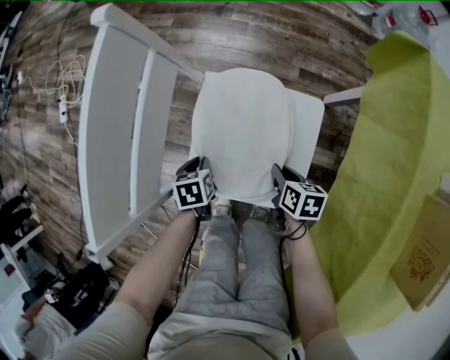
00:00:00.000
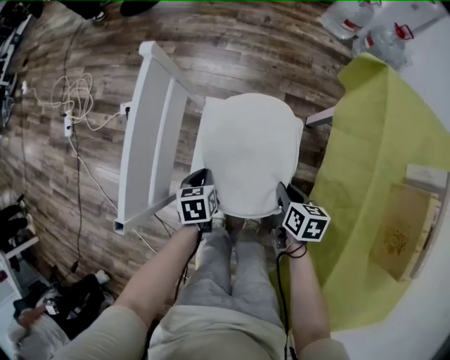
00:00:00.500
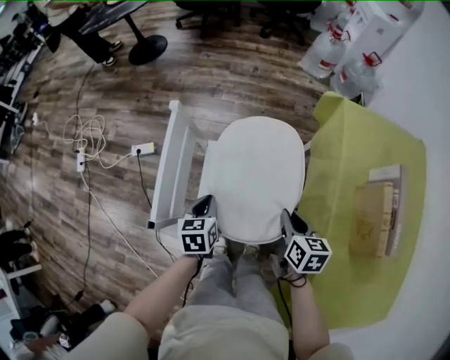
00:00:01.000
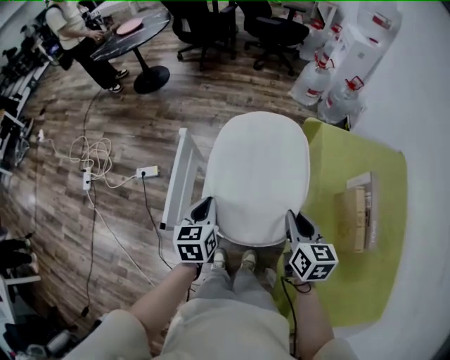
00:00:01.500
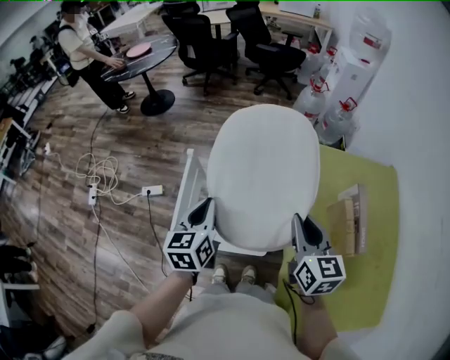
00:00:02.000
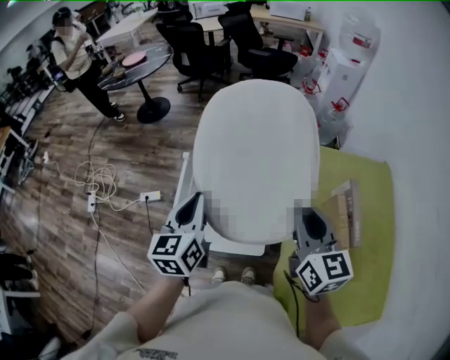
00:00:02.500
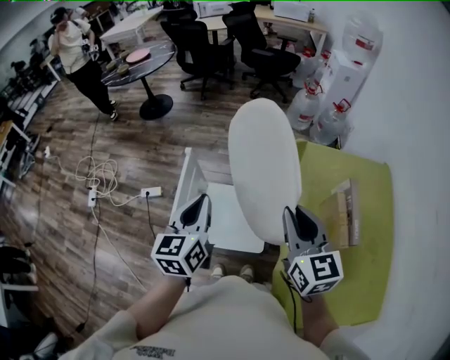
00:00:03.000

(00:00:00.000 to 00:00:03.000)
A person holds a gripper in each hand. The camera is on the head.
00:00:00.000 - 00:00:01.500: The two grippers go about 50 cm upward. The right gripper turns by approximately 40 degrees, while the left gripper tilts its fingers some 40 degrees upward.
00:00:01.500 - 00:00:03.000: Both grippers move upward, about 20 cm. The right gripper changes its angle by about 20 degrees. Meanwhile the left gripper changes its angle by about 20 degrees.

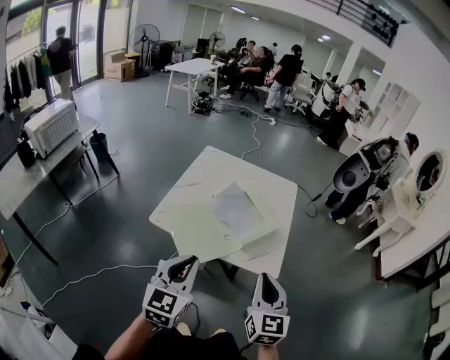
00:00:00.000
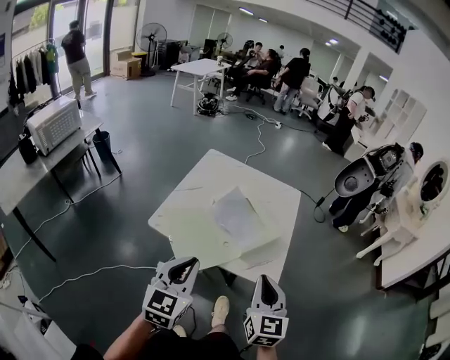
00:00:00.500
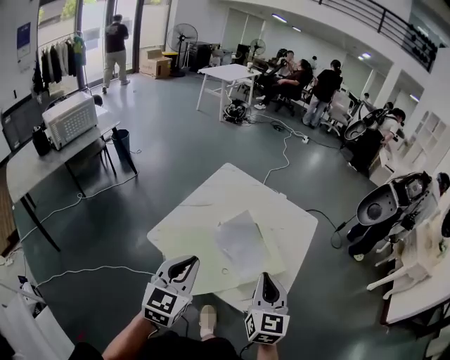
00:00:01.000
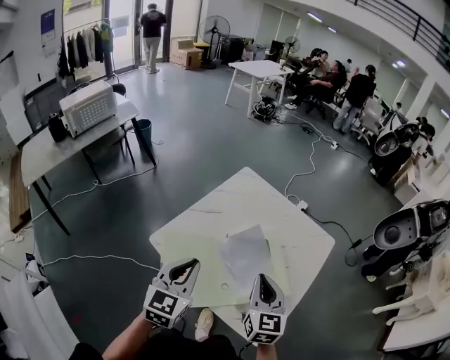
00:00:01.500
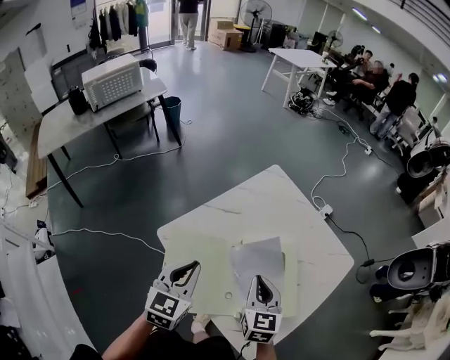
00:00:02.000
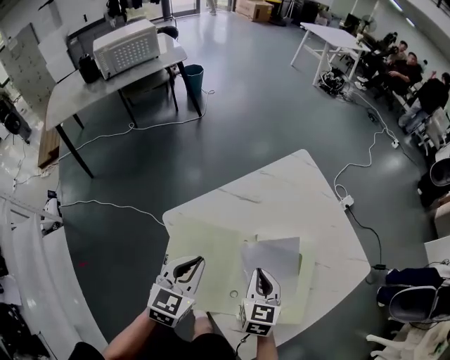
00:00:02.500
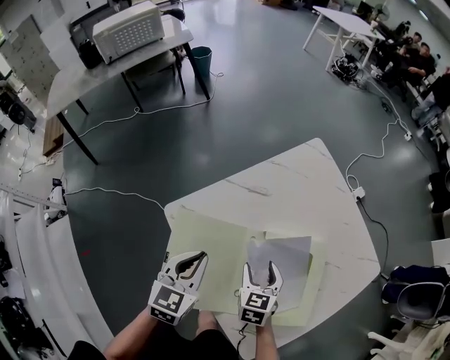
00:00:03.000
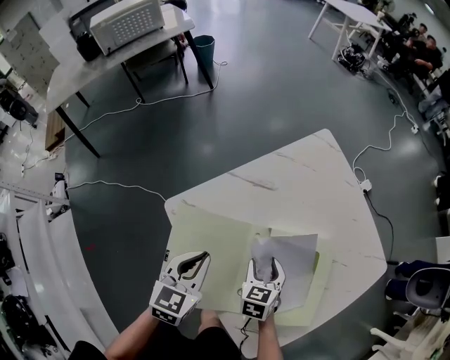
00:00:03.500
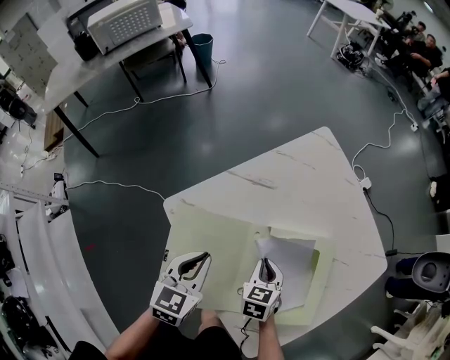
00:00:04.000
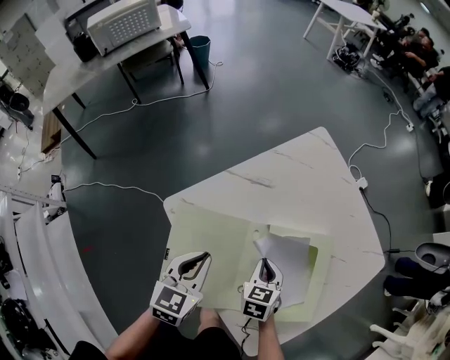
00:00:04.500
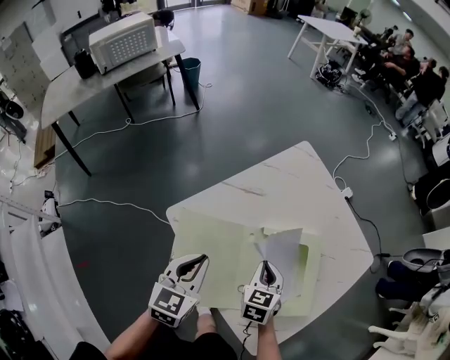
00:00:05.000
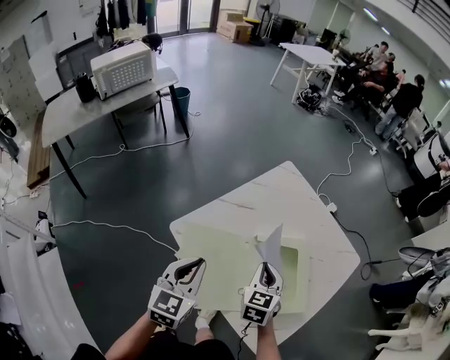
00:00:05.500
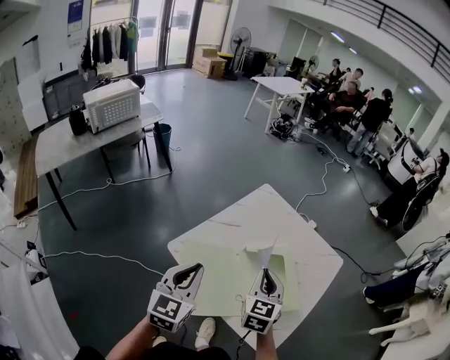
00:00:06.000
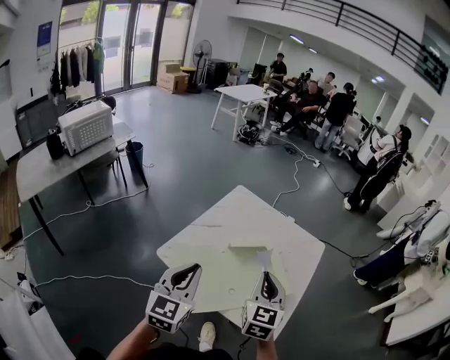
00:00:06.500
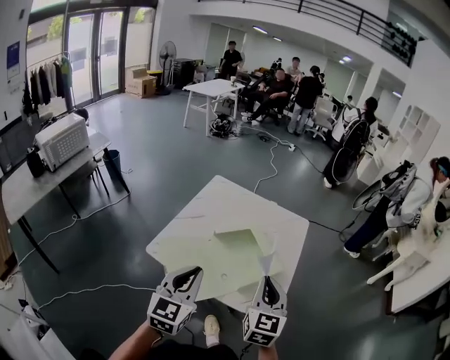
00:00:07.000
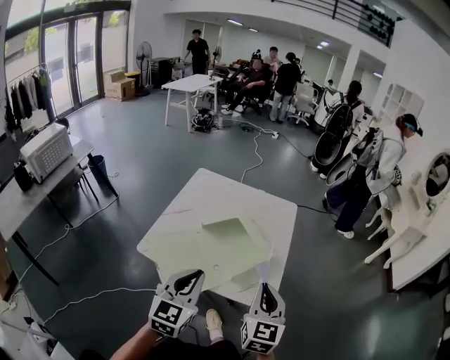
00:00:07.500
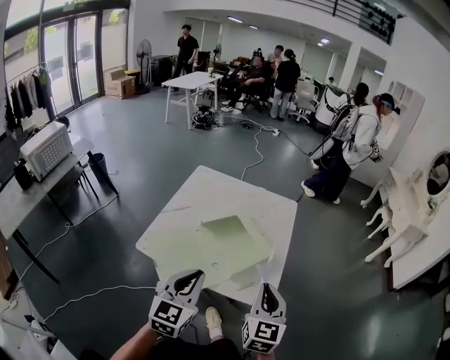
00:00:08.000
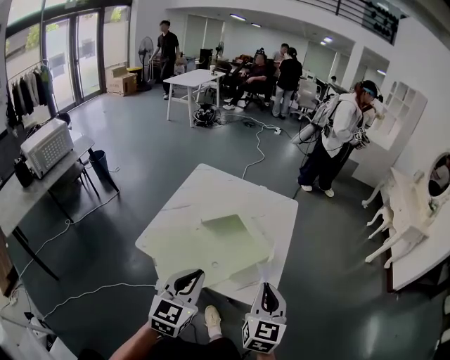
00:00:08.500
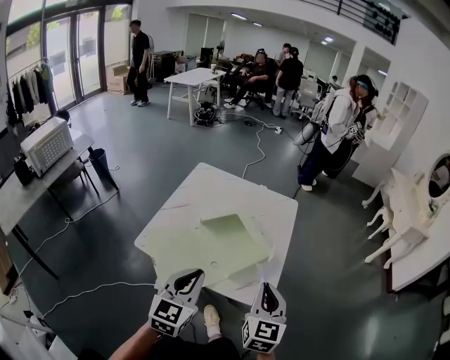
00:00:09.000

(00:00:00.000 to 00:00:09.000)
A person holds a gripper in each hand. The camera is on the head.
00:00:00.000 - 00:00:02.000: The left gripper moves about 35 cm, and rotates roughly 30 degrees. Meanwhile the right gripper changes place by about 50 cm, and rotates roughly 40 degrees.
00:00:02.000 - 00:00:04.500: The right gripper heads downward, covering approximately 20 cm, turns by roughly 30 degrees, and opens and closes again. The left gripper is displaced downward and forward by roughly 15 cm.
00:00:04.500 - 00:00:07.000: The two grippers go approximately 30 cm upward. The right gripper tilts its fingers approximately 40 degrees upward. Meanwhile the left gripper rotates approximately 40 degrees.
00:00:07.000 - 00:00:09.000: Both grippers move to the right, about 5 cm.

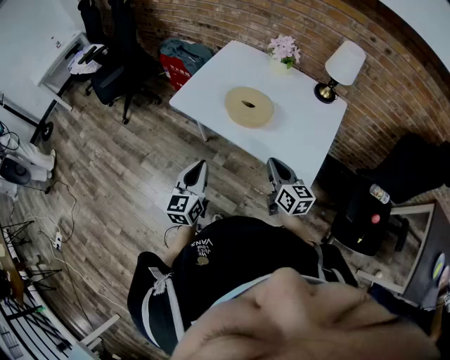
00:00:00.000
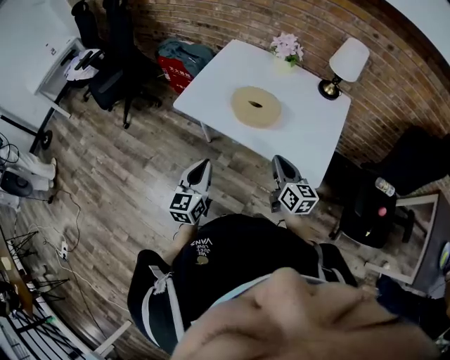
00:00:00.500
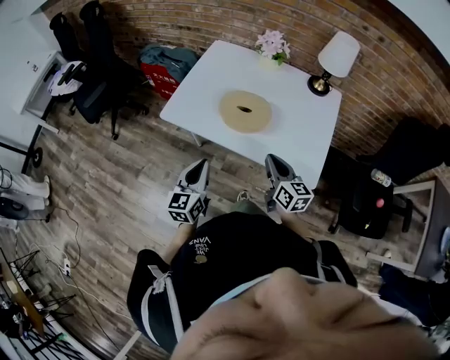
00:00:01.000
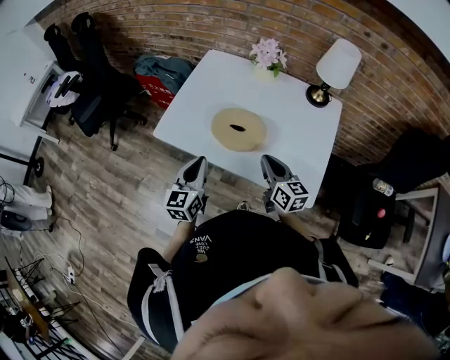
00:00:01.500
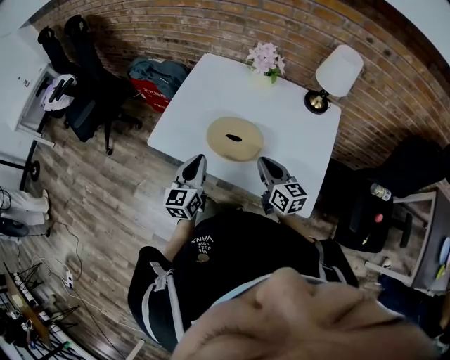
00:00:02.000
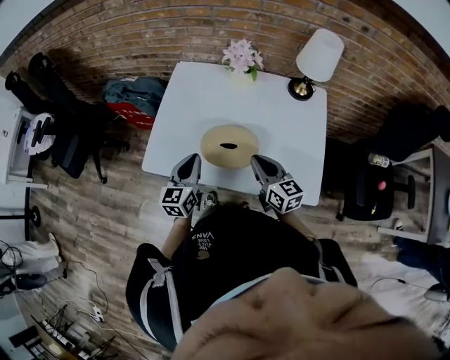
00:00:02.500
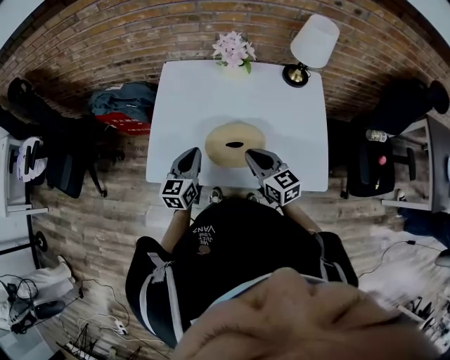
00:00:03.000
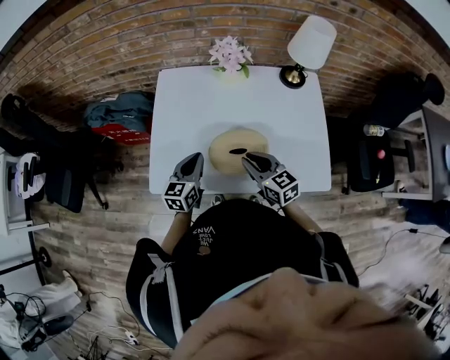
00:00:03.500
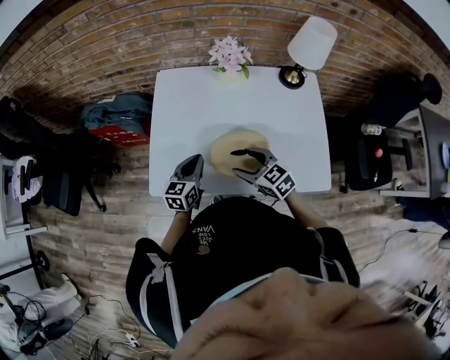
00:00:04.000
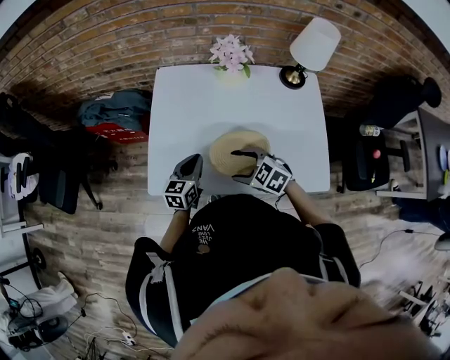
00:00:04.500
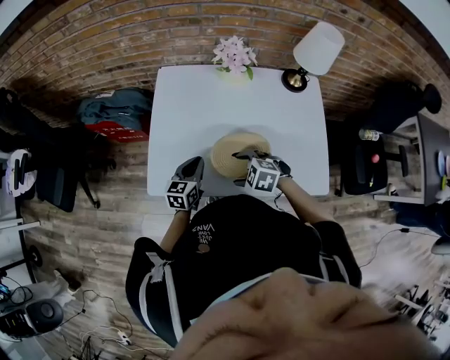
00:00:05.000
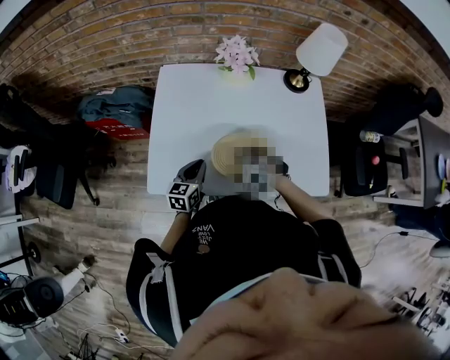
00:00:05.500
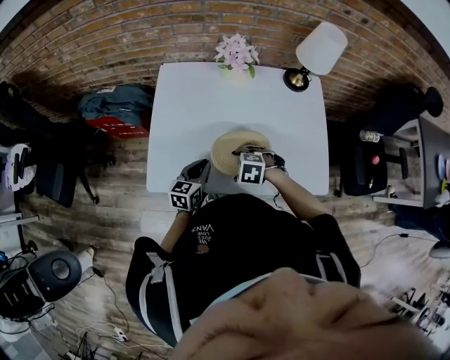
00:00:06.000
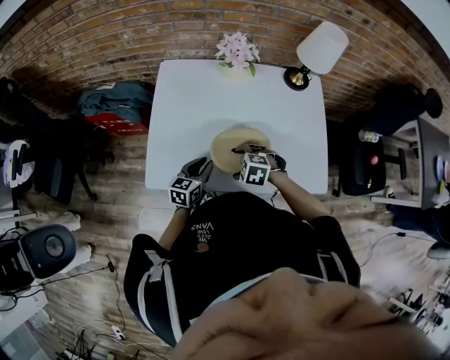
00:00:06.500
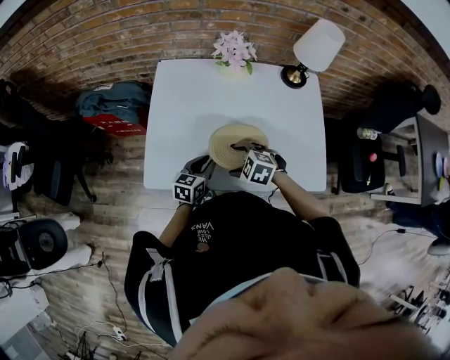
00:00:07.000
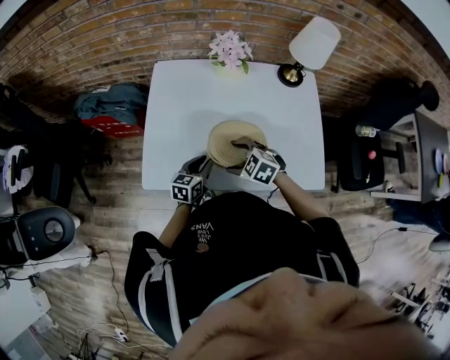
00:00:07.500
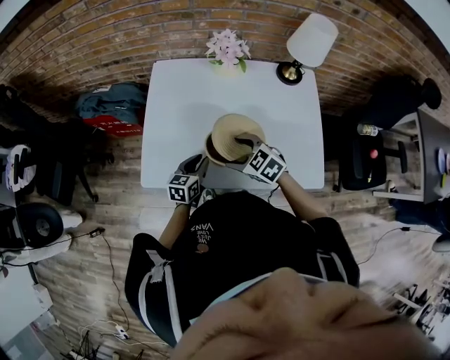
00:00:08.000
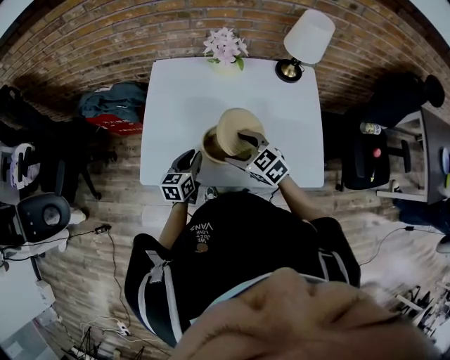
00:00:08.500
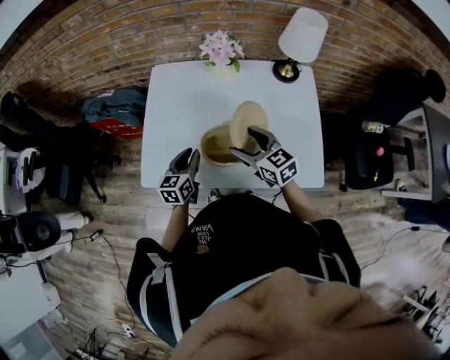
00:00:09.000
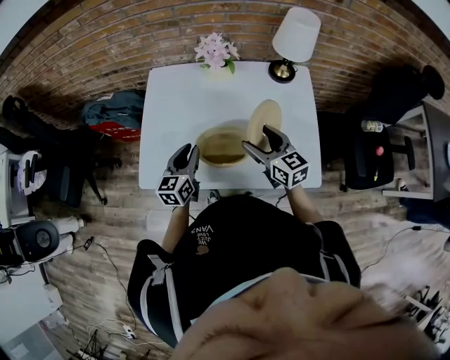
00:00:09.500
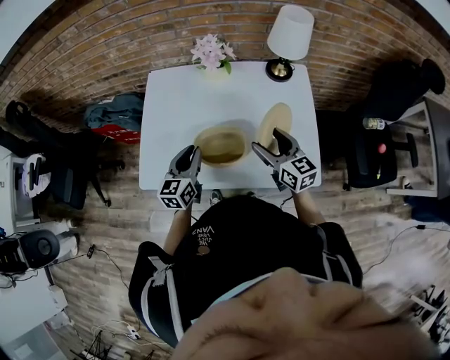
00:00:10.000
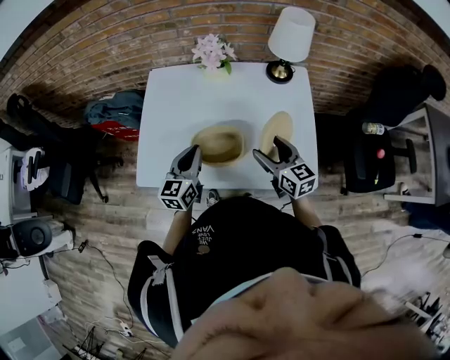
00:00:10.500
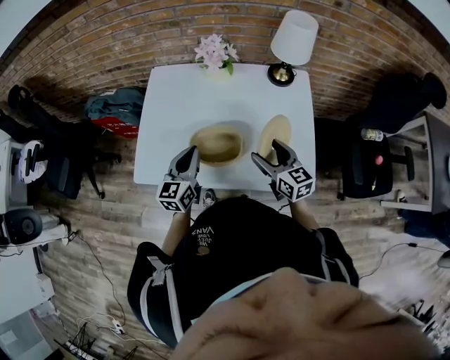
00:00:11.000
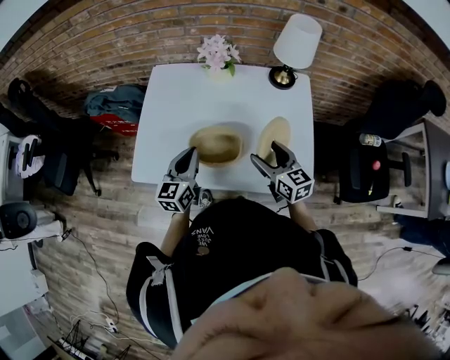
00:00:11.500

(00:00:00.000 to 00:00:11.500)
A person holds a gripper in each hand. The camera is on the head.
00:00:00.000 - 00:00:02.000: The two grippers go some 20 cm forward.
00:00:02.000 - 00:00:04.000: The right gripper goes about 15 cm to the left and forward, swivels about 30 degrees, and opens; the left gripper moves forward and downward, some 15 cm, and swivels about 30 degrees.
00:00:04.000 - 00:00:06.000: The right gripper moves downward, approximately 10 cm, and tilts its fingers approximately 40 degrees downward. The left gripper changes place by some 5 cm.
00:00:06.000 - 00:00:07.500: The right gripper changes place by about 5 cm, and rotates approximately 20 degrees.
00:00:07.500 - 00:00:09.500: The left gripper travels upward by roughly 10 cm; the right gripper heads to the right and upward, covering some 20 cm, and tilts its fingers about 40 degrees upward.
00:00:09.500 - 00:00:11.500: The right gripper moves to the right, some 5 cm, while the left gripper moves roughly 5 cm.

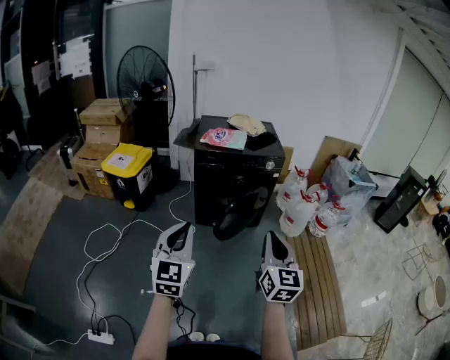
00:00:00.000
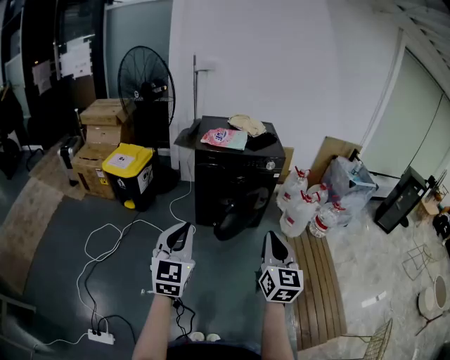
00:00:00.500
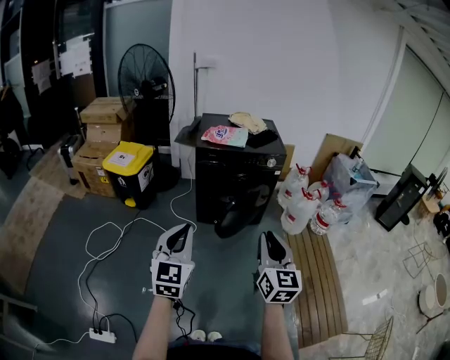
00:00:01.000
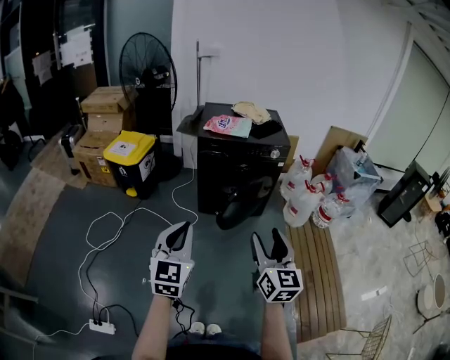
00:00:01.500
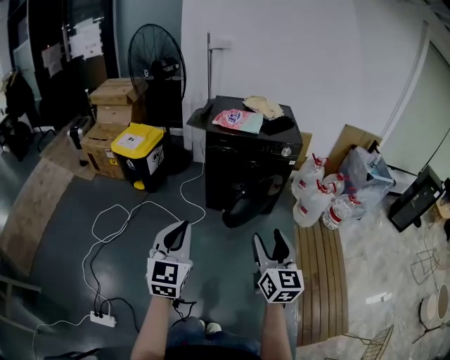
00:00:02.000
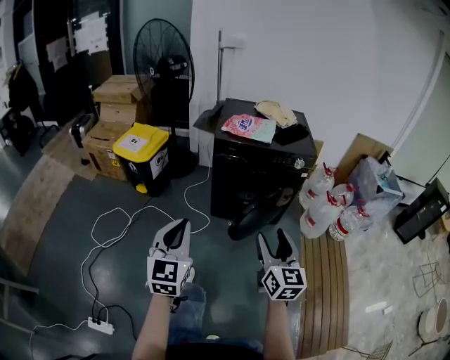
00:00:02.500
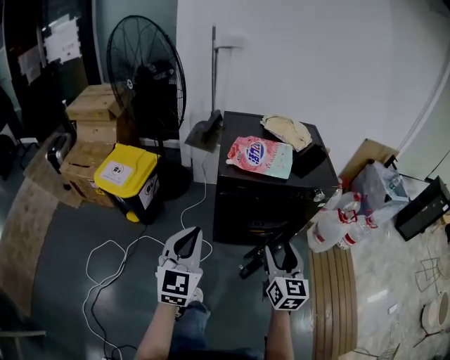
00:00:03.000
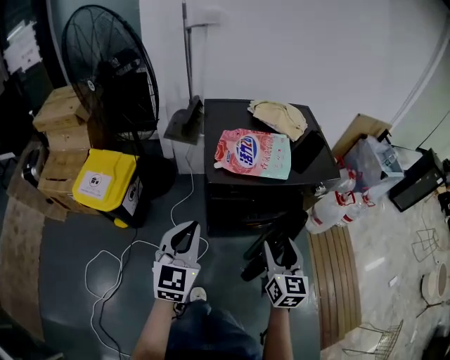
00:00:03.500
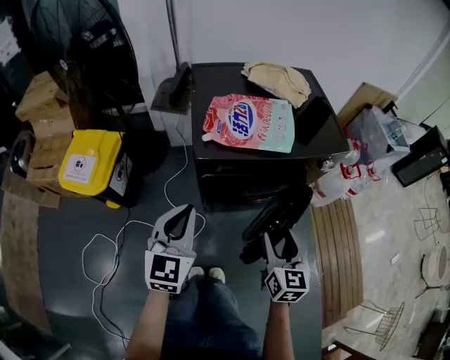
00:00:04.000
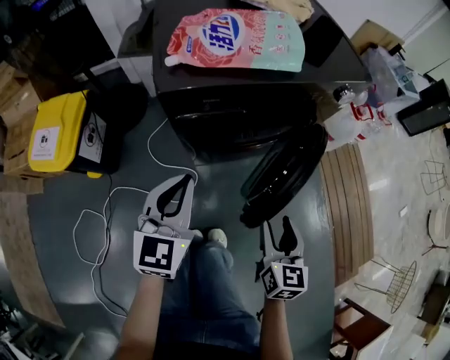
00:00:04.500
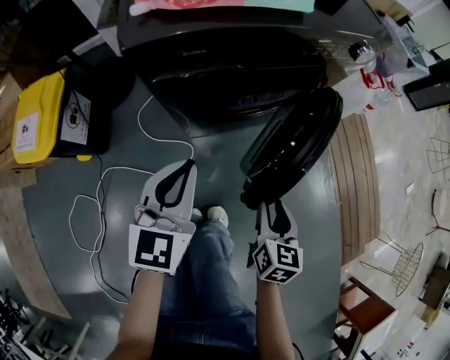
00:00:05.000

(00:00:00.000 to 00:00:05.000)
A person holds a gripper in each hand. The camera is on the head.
00:00:00.000 - 00:00:02.500: Both grippers travel together forward and downward, about 15 cm. The right gripper opens.
00:00:02.500 - 00:00:05.000: The right gripper heads downward, covering approximately 40 cm, tilts its fingers approximately 30 degrees downward, and closes up. The left gripper shifts by approximately 50 cm, and turns by some 30 degrees.
